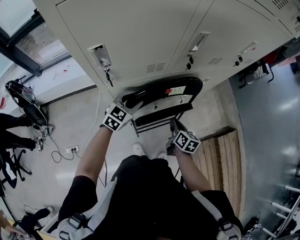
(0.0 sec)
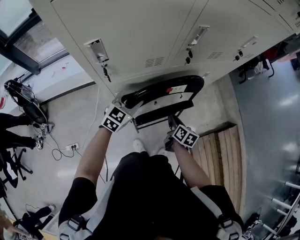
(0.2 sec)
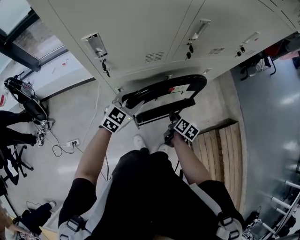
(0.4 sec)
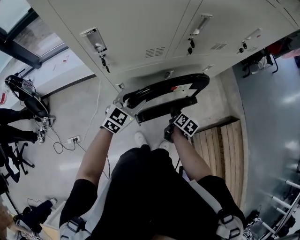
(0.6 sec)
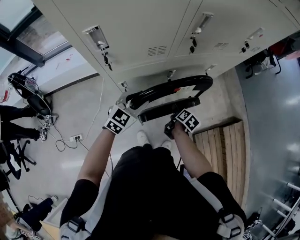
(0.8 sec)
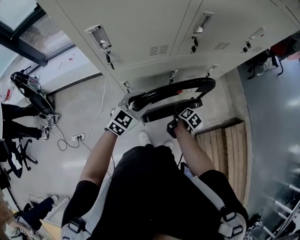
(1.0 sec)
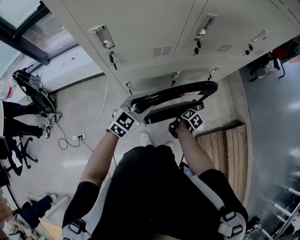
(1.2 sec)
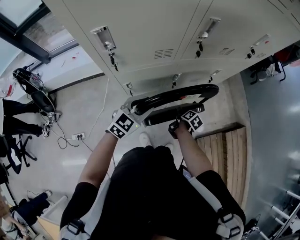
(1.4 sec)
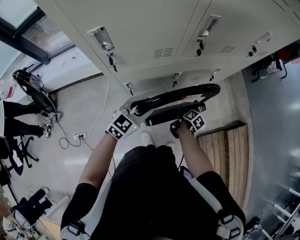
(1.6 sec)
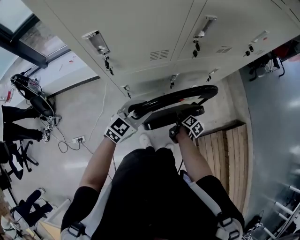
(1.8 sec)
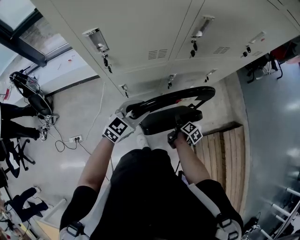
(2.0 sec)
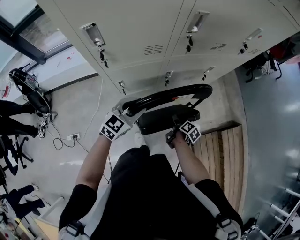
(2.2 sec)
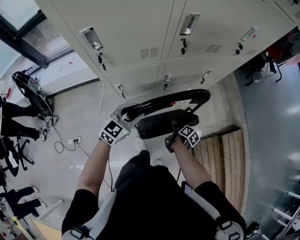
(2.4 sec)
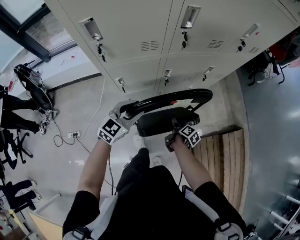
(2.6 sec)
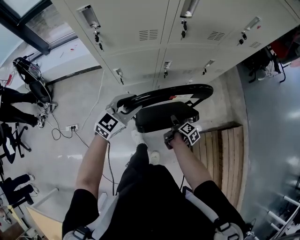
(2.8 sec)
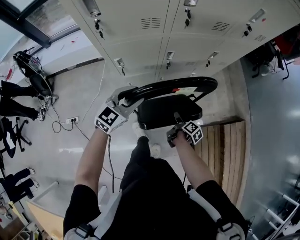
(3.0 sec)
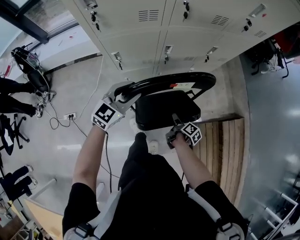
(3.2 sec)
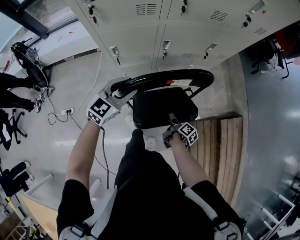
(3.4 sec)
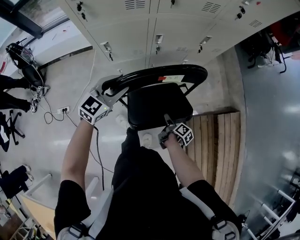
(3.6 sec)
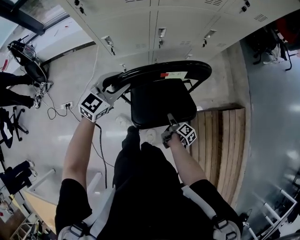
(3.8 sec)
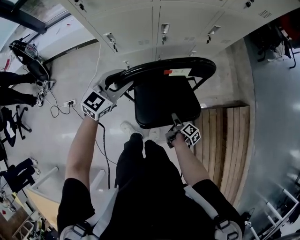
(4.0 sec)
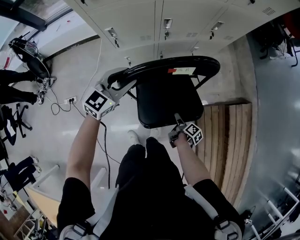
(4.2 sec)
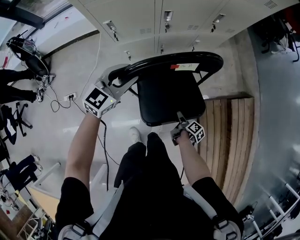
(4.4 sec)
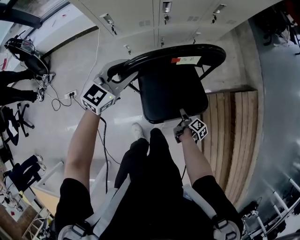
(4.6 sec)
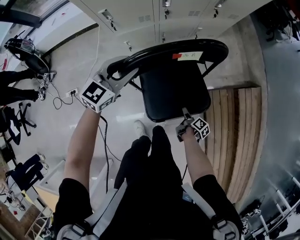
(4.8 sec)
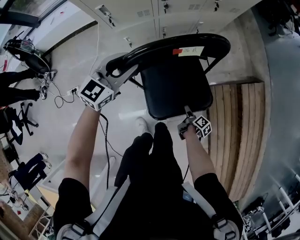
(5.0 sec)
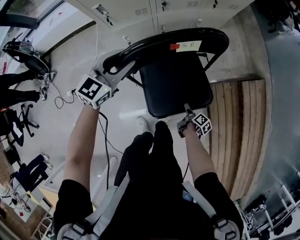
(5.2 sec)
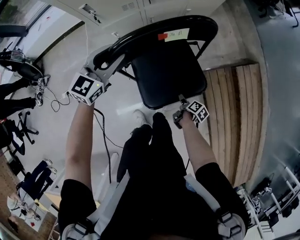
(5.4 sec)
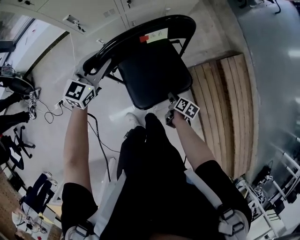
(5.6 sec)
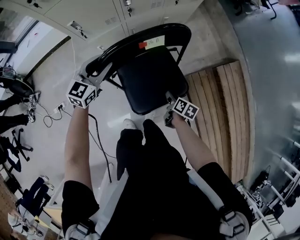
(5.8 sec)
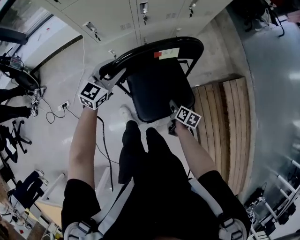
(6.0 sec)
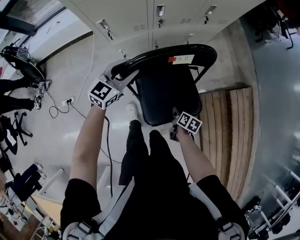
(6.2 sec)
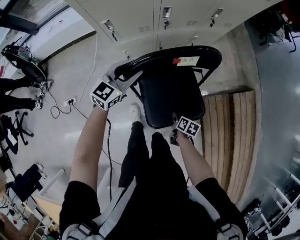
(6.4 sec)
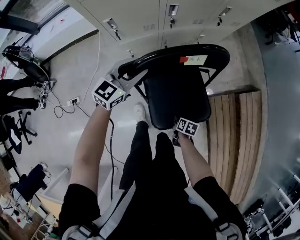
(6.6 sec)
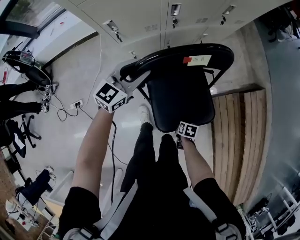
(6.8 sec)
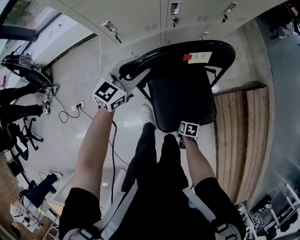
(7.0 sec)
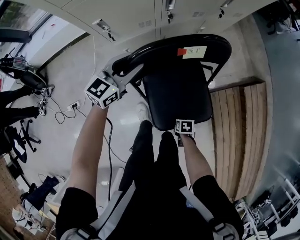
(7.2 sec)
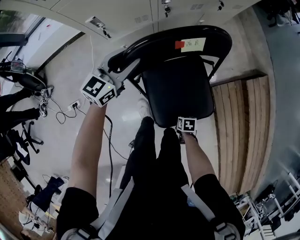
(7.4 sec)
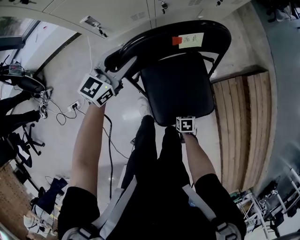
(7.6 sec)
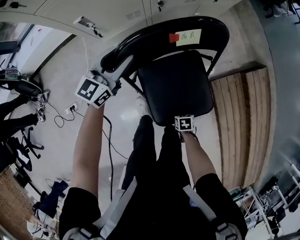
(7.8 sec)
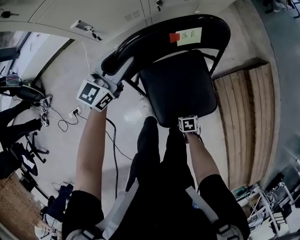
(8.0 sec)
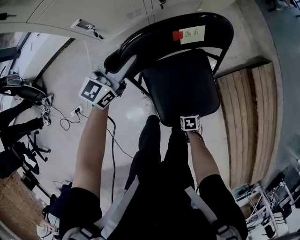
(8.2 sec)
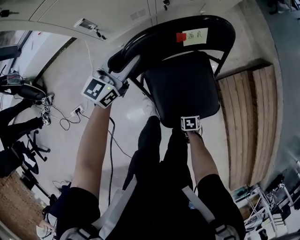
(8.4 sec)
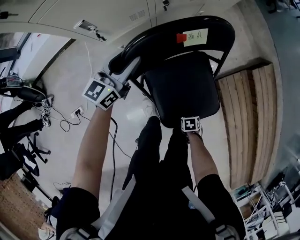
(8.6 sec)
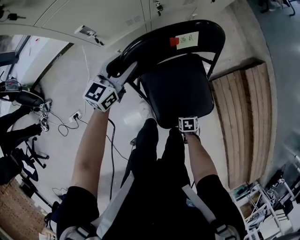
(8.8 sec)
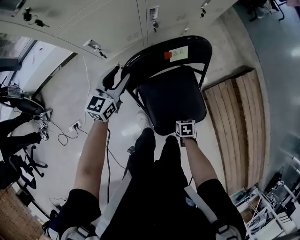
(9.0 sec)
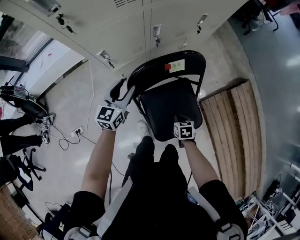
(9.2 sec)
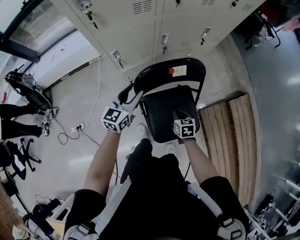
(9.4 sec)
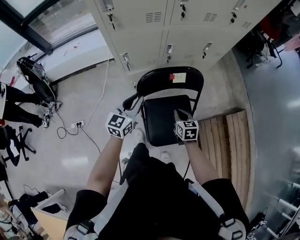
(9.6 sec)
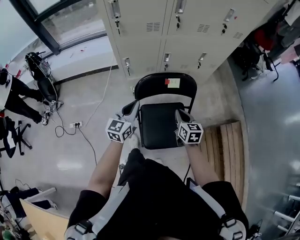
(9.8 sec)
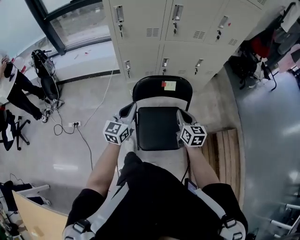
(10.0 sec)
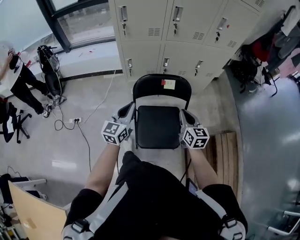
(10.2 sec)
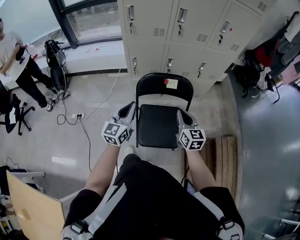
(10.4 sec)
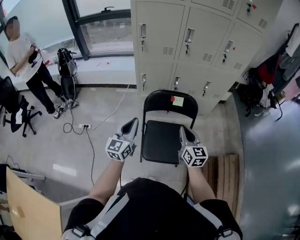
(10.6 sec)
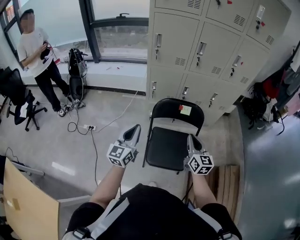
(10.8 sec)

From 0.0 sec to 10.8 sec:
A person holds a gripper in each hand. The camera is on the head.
From 0.0 sec to 1.6 sec: The left gripper heads backward and to the right, covering roughly 10 cm. Meanwhile the right gripper shifts about 15 cm downward, turns by about 40 degrees, and opens.
From 1.6 sec to 3.0 sec: The left gripper shifts some 5 cm backward, while the right gripper goes some 15 cm backward and to the right.
From 3.0 sec to 4.6 sec: The right gripper moves backward, downward and to the right, about 25 cm; the left gripper is displaced backward by approximately 5 cm.
From 4.6 sec to 6.2 sec: The right gripper heads upward, covering approximately 5 cm, rotates some 30 degrees, and closes.
From 6.2 sec to 7.8 sec: The left gripper moves approximately 10 cm. Meanwhile the right gripper shifts roughly 15 cm downward, and rotates approximately 40 degrees.
From 7.8 sec to 9.2 sec: The left gripper ends up about 5 cm from where it was. The right gripper heads upward, covering roughly 15 cm.
From 9.2 sec to 10.8 sec: The left gripper goes approximately 40 cm backward and upward, turns by some 40 degrees, and closes its fingers, while the right gripper moves upward, about 40 cm, and points its fingers about 60 degrees further upward.

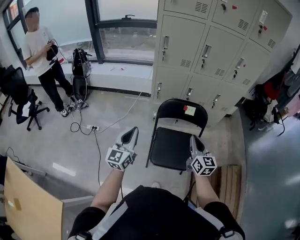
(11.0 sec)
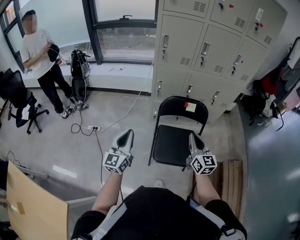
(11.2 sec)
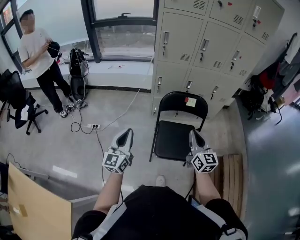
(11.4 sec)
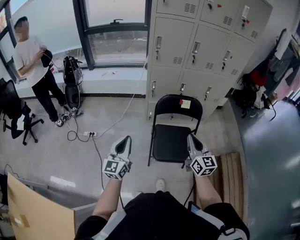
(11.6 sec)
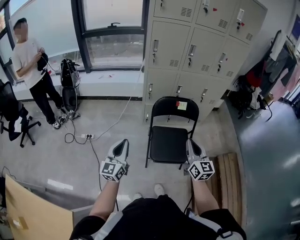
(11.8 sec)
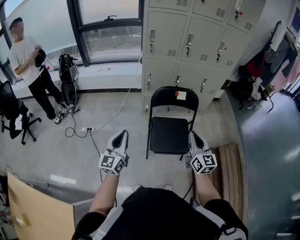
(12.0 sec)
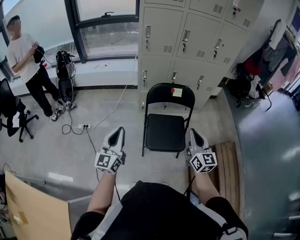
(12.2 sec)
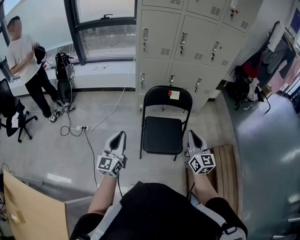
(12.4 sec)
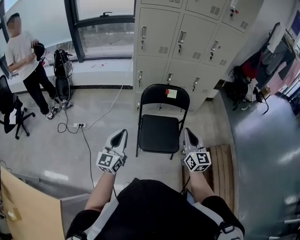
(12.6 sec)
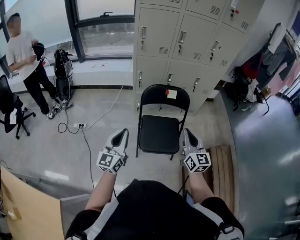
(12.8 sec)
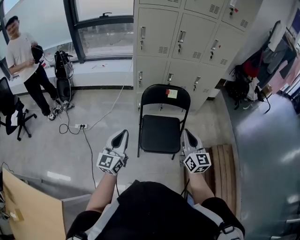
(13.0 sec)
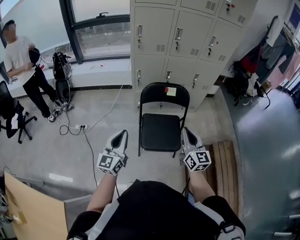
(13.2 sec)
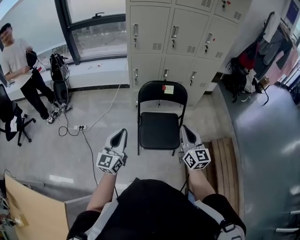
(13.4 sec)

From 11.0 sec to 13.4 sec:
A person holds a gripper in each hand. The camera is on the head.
From 11.0 sec to 12.2 sec: The two grippers go approximately 10 cm backward.
From 12.2 sec to 13.4 sec: The left gripper shifts approximately 5 cm to the right.

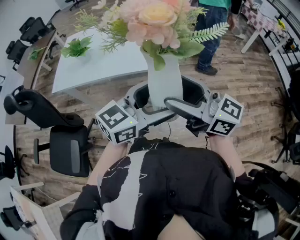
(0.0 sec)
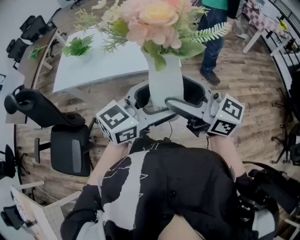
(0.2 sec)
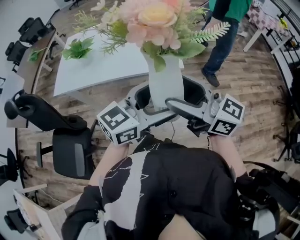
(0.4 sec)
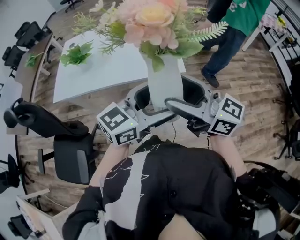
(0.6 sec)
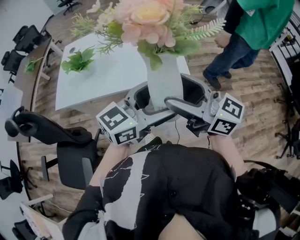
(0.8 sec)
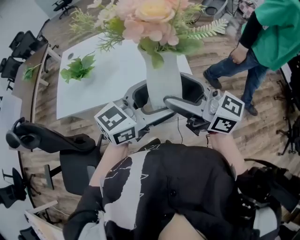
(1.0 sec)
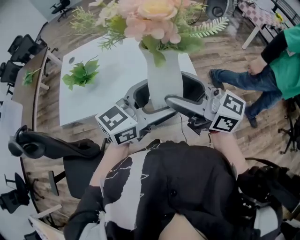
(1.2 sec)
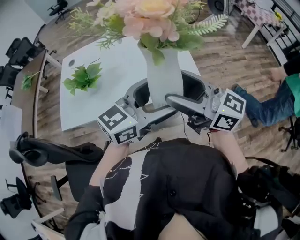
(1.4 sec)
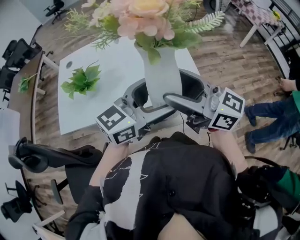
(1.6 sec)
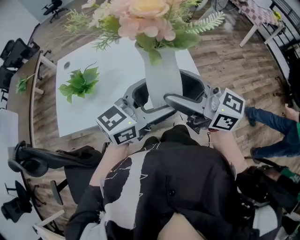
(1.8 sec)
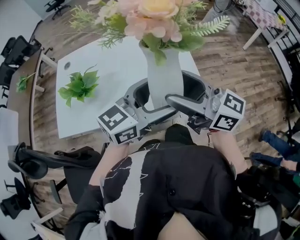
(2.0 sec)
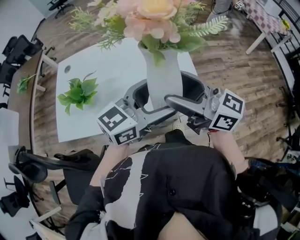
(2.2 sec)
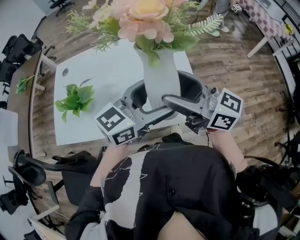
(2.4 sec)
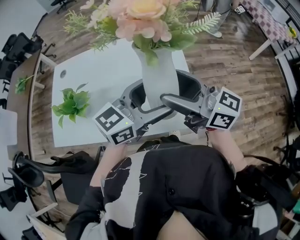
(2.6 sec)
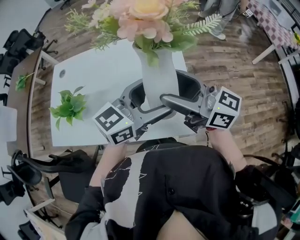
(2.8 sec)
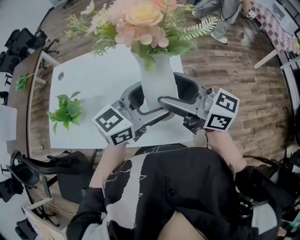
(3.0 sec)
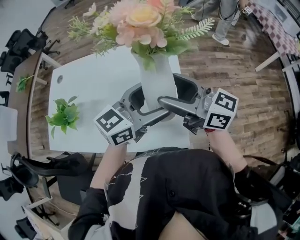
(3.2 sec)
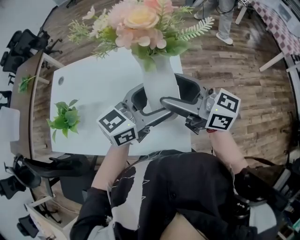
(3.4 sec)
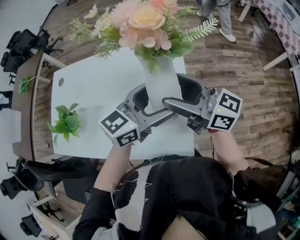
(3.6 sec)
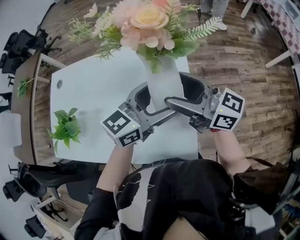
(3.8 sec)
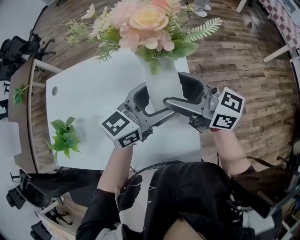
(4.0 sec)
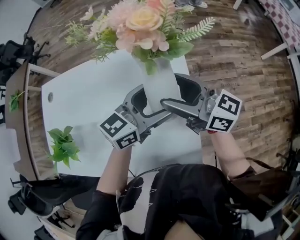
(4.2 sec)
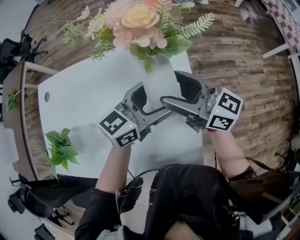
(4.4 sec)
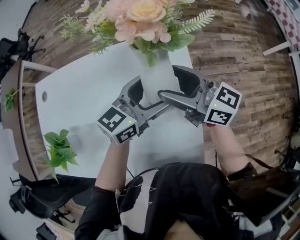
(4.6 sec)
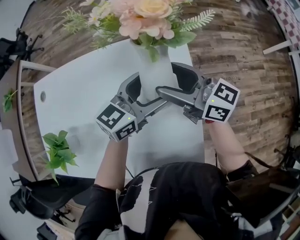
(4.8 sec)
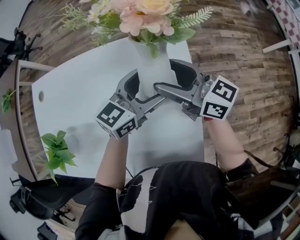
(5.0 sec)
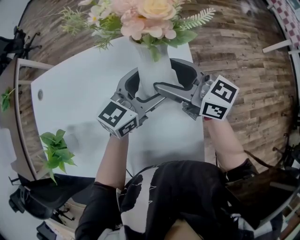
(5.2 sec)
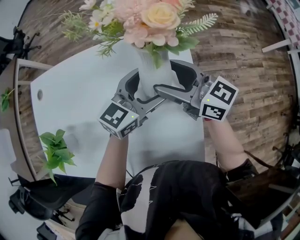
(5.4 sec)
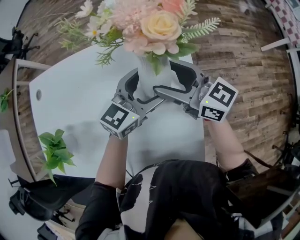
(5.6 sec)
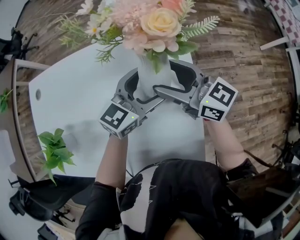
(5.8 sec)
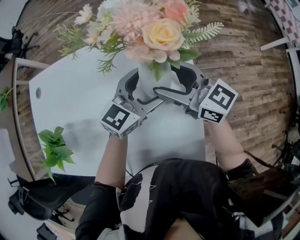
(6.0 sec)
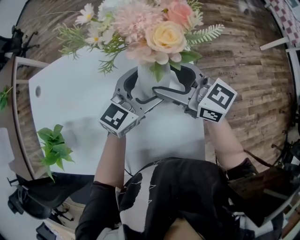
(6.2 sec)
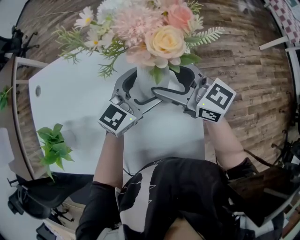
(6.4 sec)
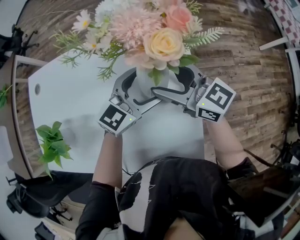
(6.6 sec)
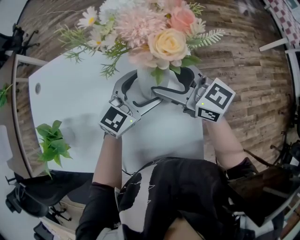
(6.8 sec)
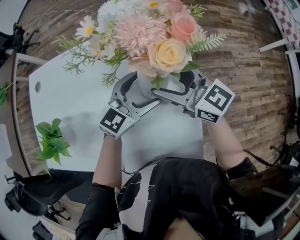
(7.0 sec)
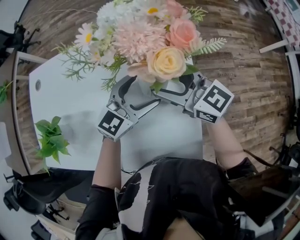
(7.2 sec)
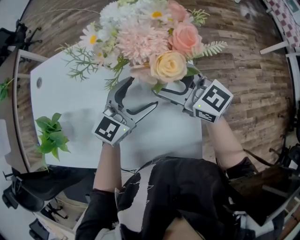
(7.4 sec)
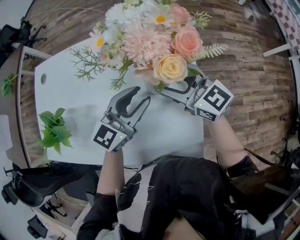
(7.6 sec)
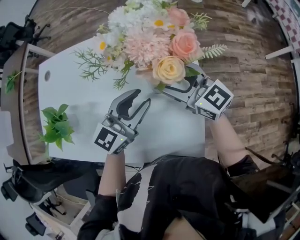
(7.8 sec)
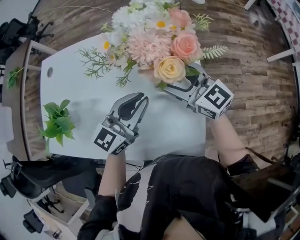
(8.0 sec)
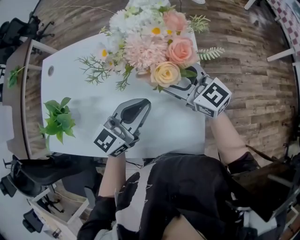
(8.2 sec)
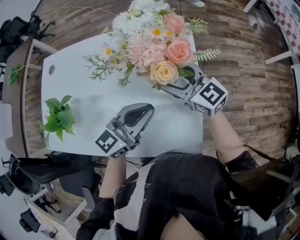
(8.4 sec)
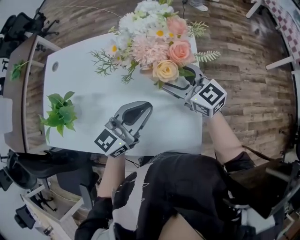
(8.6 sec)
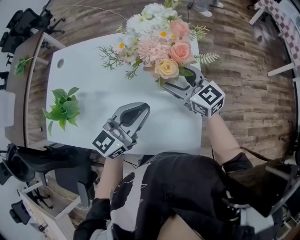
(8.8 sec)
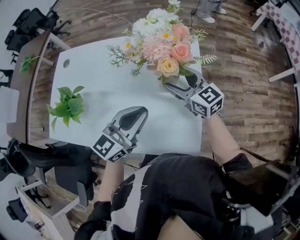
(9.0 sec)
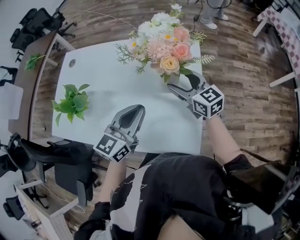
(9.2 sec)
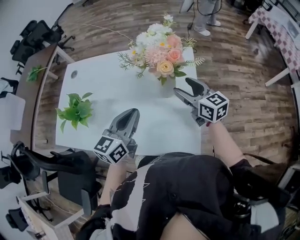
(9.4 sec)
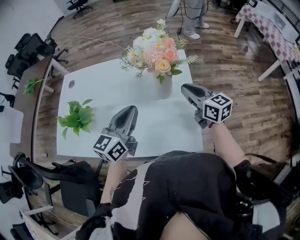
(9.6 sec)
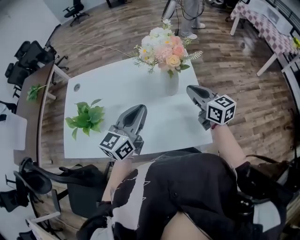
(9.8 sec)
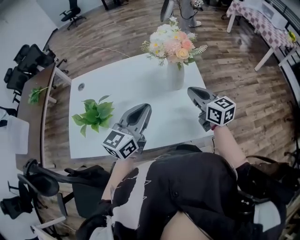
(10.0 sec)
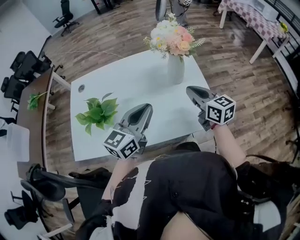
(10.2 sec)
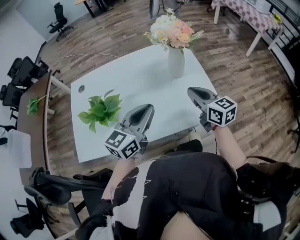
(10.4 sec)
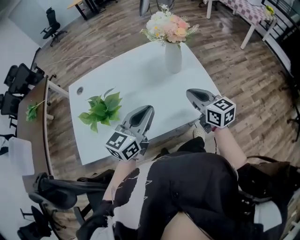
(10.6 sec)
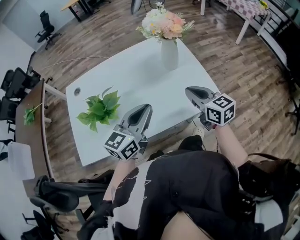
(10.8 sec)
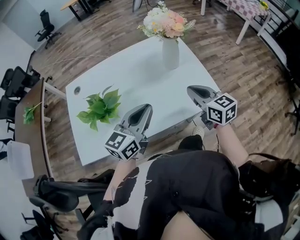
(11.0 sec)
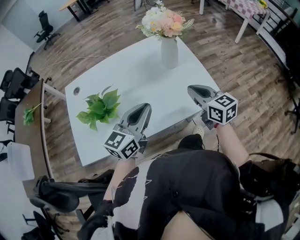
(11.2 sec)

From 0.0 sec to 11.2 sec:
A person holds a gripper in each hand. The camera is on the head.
From 0.0 sec to 1.6 sec: The two grippers go about 25 cm forward and to the left.
From 1.6 sec to 3.2 sec: Both grippers travel together forward, some 25 cm.
From 3.2 sec to 4.8 sec: The two grippers go some 20 cm forward and downward.
From 4.8 sec to 6.4 sec: There are only small adjustments of the grippers.
From 6.4 sec to 8.0 sec: The left gripper shifts some 15 cm backward and to the left, and closes up.
From 8.0 sec to 9.6 sec: The right gripper travels backward by about 5 cm, turns by roughly 20 degrees, and closes its fingers; the left gripper moves to the left, upward and backward, some 10 cm.
From 9.6 sec to 11.2 sec: Both grippers travel together backward and to the left, some 20 cm. The left gripper swivels approximately 30 degrees. Meanwhile the right gripper swivels roughly 20 degrees.
